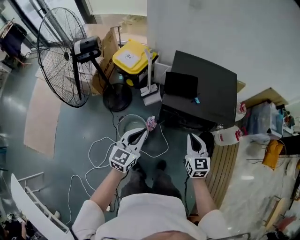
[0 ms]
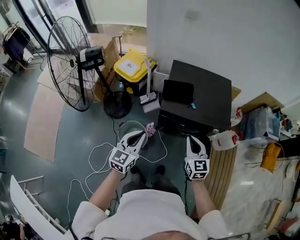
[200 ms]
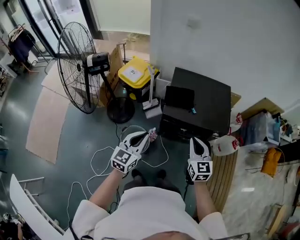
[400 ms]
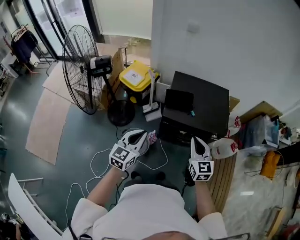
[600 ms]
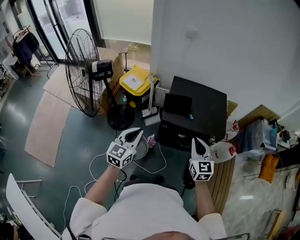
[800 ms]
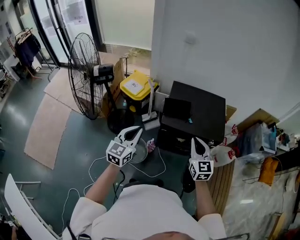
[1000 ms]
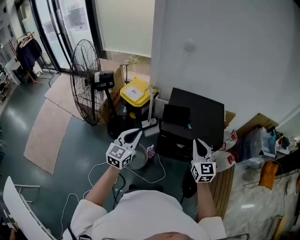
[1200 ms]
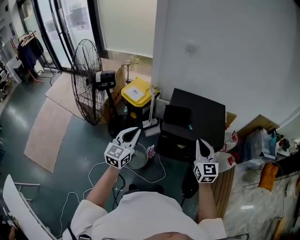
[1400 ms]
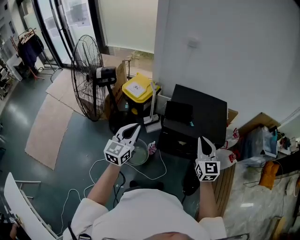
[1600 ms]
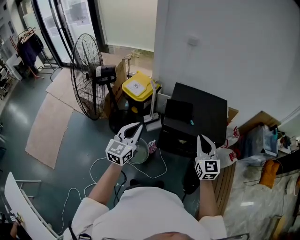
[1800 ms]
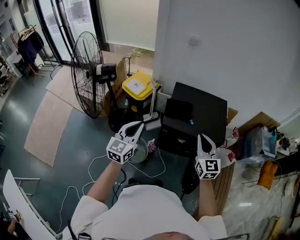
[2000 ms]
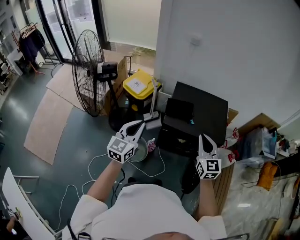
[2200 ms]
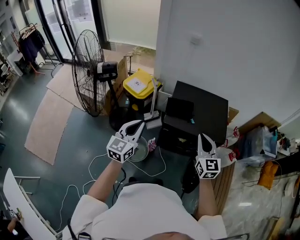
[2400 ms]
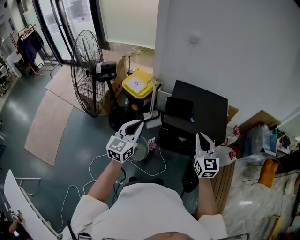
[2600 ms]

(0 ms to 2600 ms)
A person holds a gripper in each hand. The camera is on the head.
0 ms - 1200 ms: Both grippers move upward, roughly 15 cm.
1200 ms - 2600 ms: The grippers stay close to where they were, moving slightly.

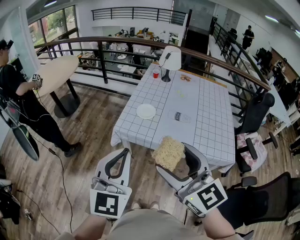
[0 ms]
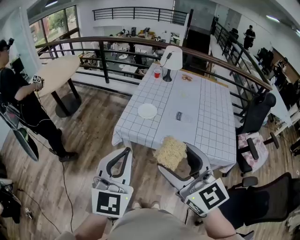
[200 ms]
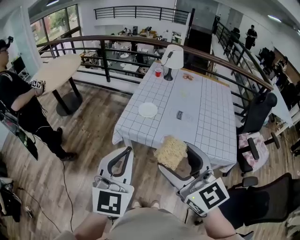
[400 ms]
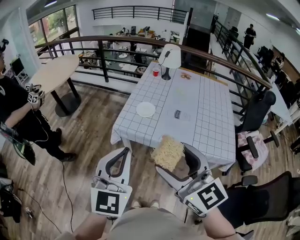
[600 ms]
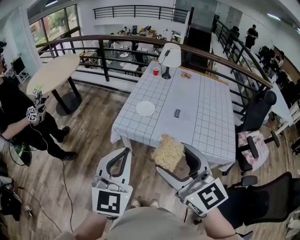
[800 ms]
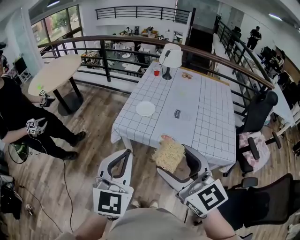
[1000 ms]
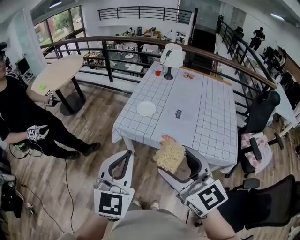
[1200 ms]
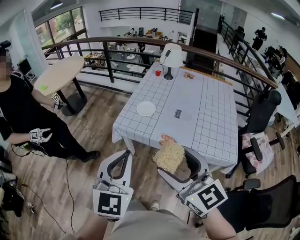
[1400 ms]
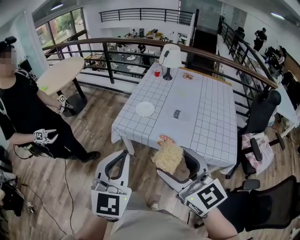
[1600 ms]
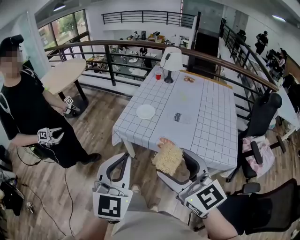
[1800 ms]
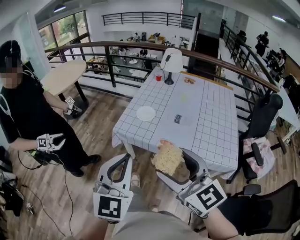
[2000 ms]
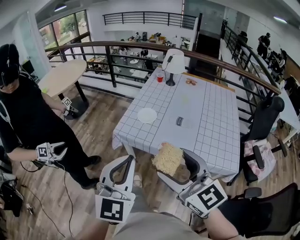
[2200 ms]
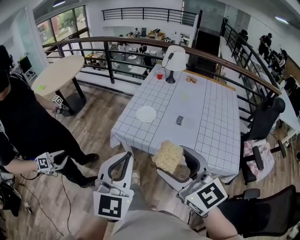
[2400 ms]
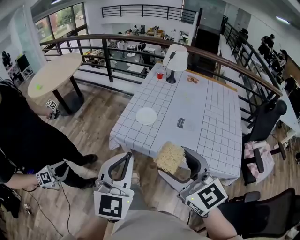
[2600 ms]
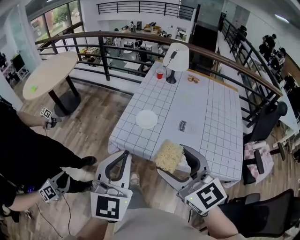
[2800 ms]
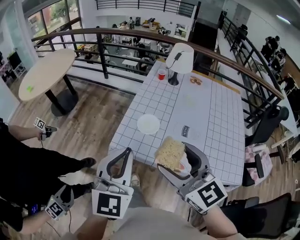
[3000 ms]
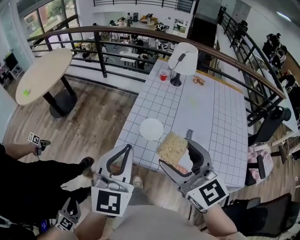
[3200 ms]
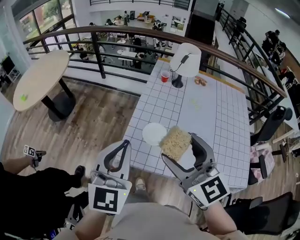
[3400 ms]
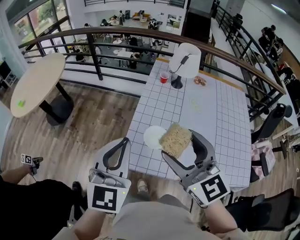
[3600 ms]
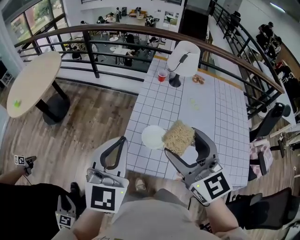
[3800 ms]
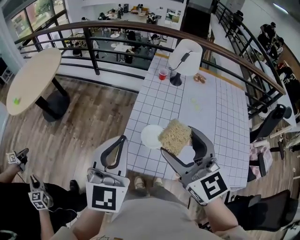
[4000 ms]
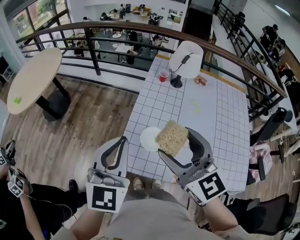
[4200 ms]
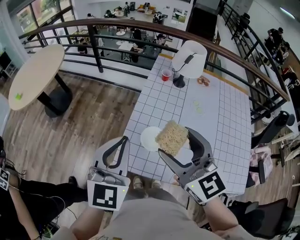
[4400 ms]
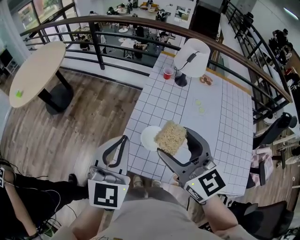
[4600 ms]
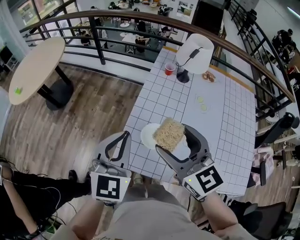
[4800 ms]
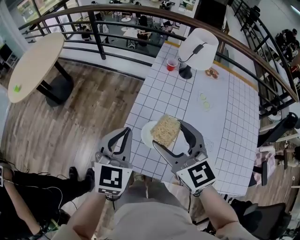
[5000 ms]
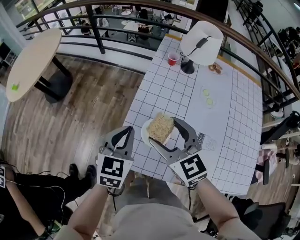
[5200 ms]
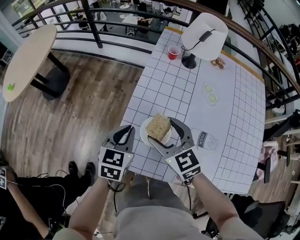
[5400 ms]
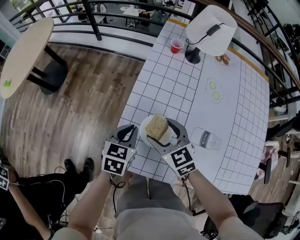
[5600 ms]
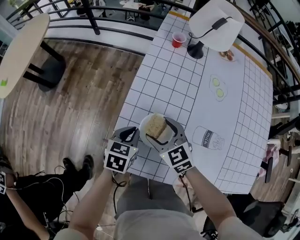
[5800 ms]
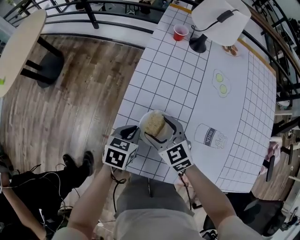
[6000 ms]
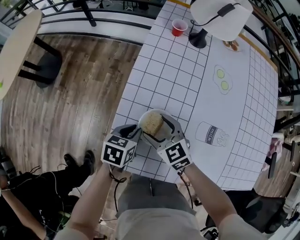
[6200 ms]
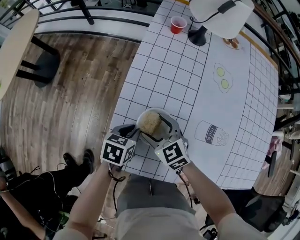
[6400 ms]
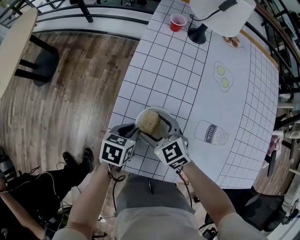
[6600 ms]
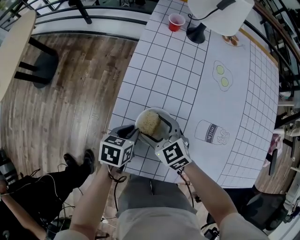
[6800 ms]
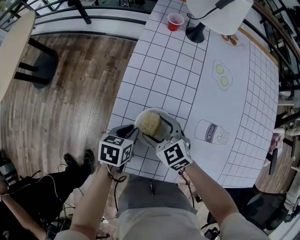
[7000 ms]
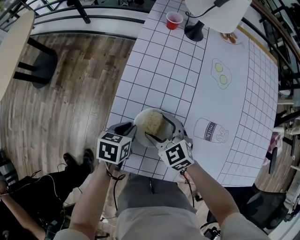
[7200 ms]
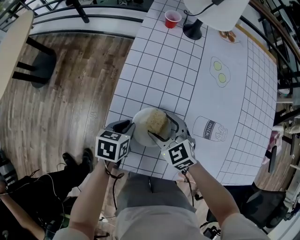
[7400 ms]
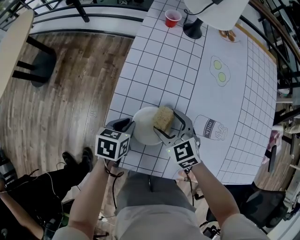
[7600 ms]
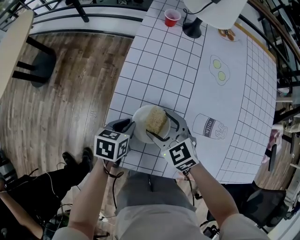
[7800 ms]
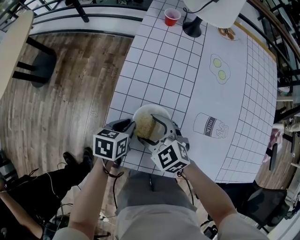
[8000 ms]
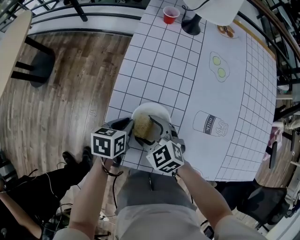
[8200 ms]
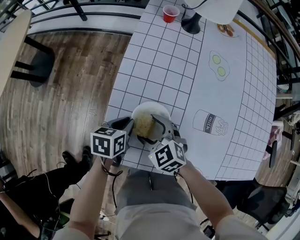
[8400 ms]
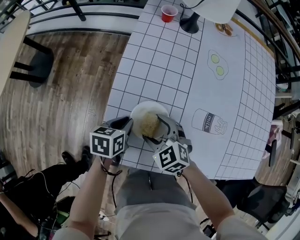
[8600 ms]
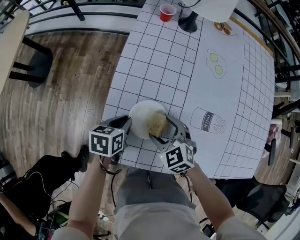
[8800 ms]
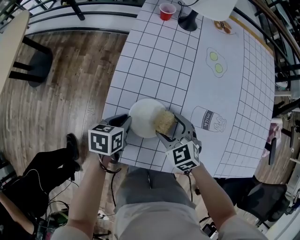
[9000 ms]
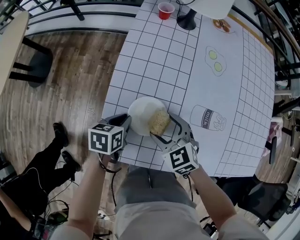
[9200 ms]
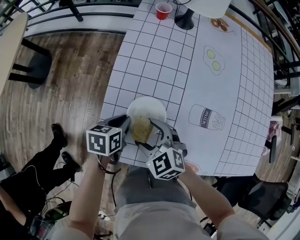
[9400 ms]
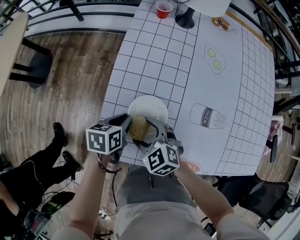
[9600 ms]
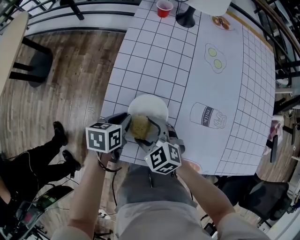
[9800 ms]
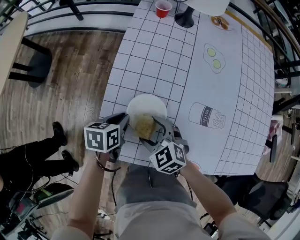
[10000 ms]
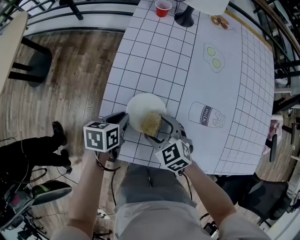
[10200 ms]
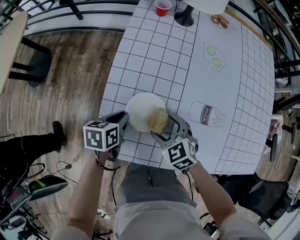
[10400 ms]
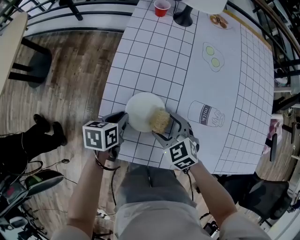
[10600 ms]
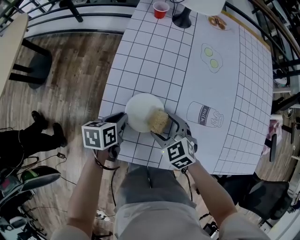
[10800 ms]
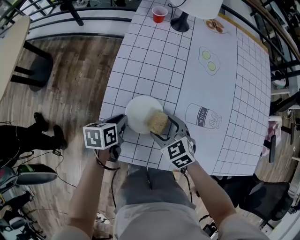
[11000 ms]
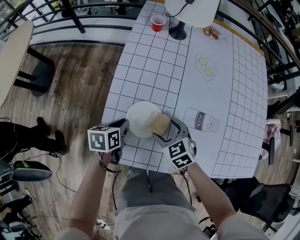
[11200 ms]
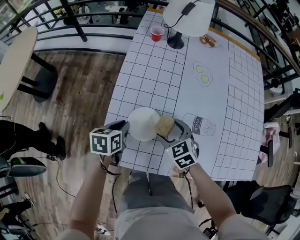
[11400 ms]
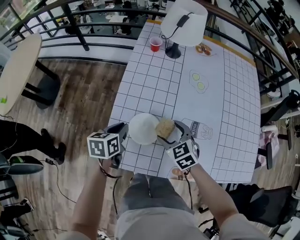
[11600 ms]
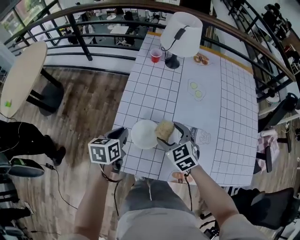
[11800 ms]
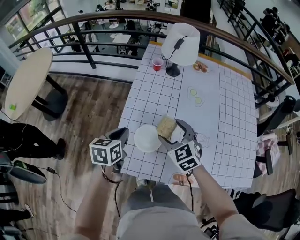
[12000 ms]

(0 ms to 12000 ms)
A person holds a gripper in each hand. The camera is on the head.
0 ms - 1600 ms: The two grippers go about 5 cm to the right.
1600 ms - 3000 ms: Both grippers move forward, approximately 25 cm.
3000 ms - 4400 ms: Both grippers move forward, approximately 20 cm.
4400 ms - 6000 ms: Both grippers move downward, some 40 cm. The left gripper tilts its fingers about 40 degrees downward. Meanwhile the right gripper swivels roughly 30 degrees.
6000 ms - 7600 ms: The right gripper travels to the right by some 5 cm.
7600 ms - 9000 ms: The right gripper reaches about 10 cm to the left, then returns.
9000 ms - 10400 ms: The right gripper reaches roughly 10 cm to the left, then returns.
10400 ms - 12000 ms: Both grippers move upward, about 20 cm. The left gripper changes its angle by about 20 degrees.

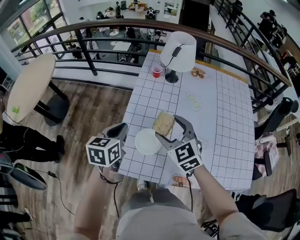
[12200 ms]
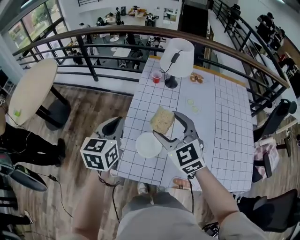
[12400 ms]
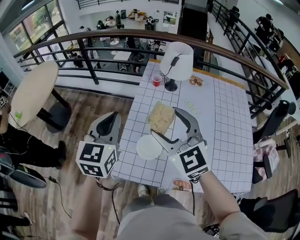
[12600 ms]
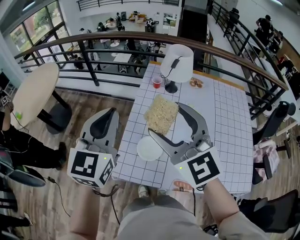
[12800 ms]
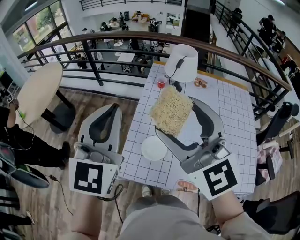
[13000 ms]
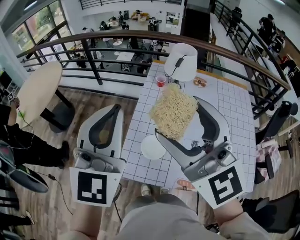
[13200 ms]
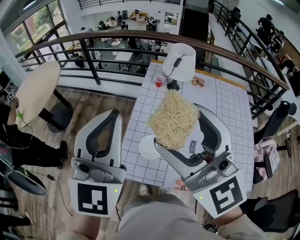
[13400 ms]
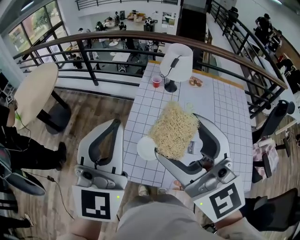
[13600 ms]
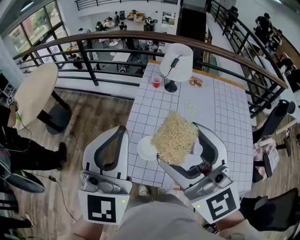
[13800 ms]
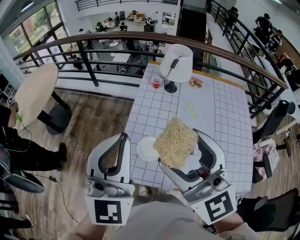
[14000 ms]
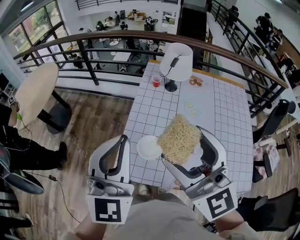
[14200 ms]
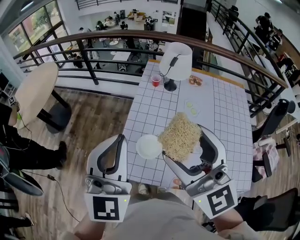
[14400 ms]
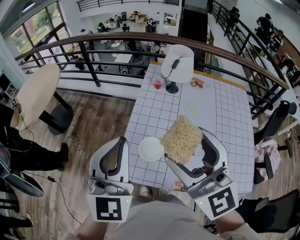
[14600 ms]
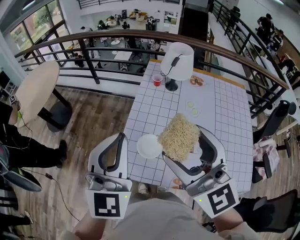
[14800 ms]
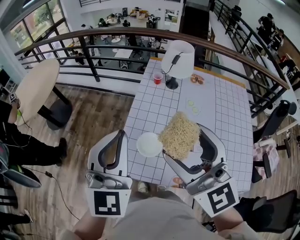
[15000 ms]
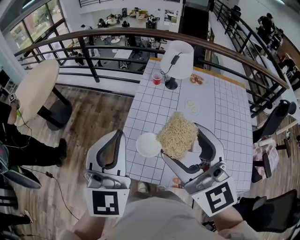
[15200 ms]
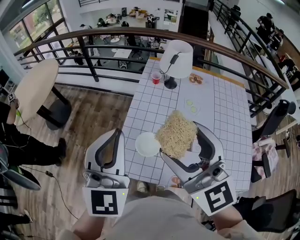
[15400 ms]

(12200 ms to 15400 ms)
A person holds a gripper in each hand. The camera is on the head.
12200 ms - 13800 ms: The right gripper moves upward and backward, roughly 30 cm, and tilts its fingers roughly 30 degrees upward. Meanwhile the left gripper is displaced upward by some 30 cm, and tilts its fingers approximately 40 degrees upward.
13800 ms - 15400 ms: The grippers move only a little.

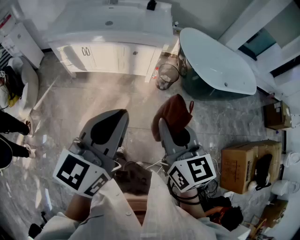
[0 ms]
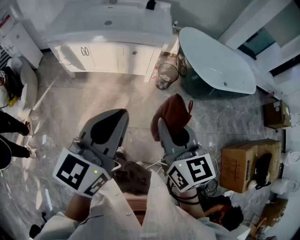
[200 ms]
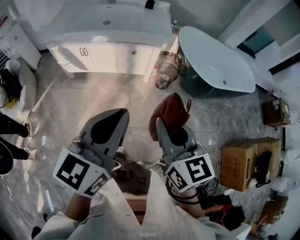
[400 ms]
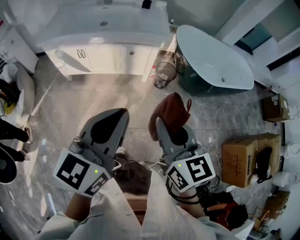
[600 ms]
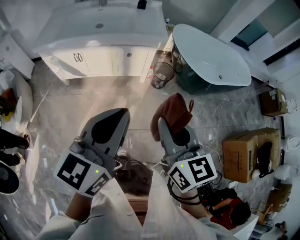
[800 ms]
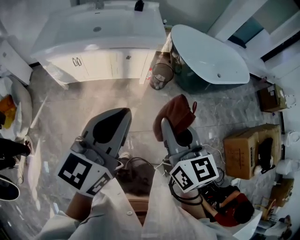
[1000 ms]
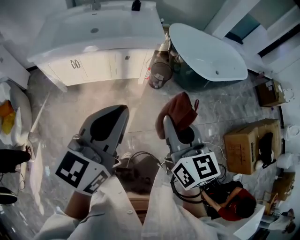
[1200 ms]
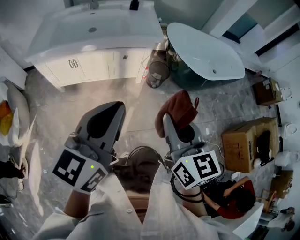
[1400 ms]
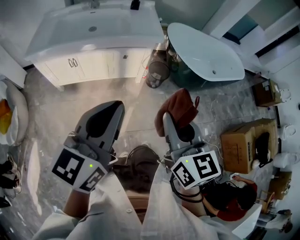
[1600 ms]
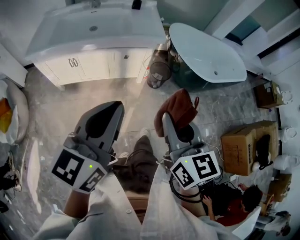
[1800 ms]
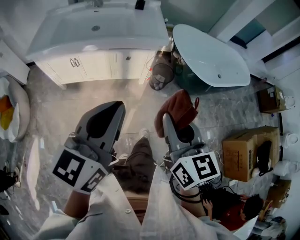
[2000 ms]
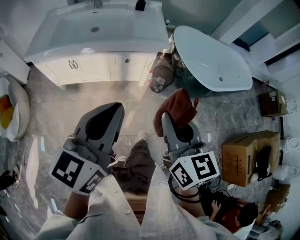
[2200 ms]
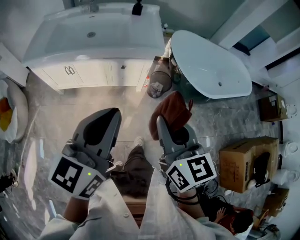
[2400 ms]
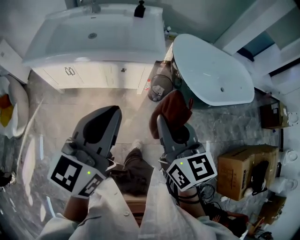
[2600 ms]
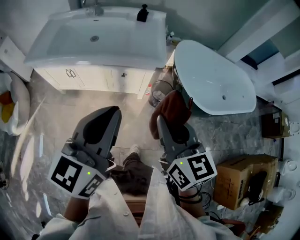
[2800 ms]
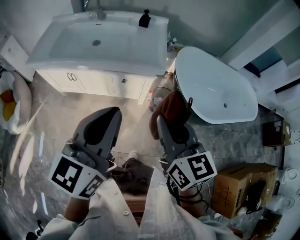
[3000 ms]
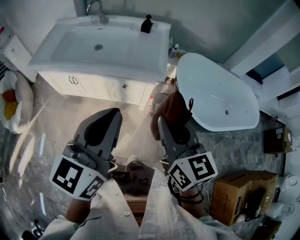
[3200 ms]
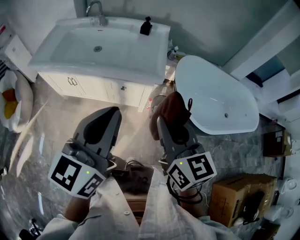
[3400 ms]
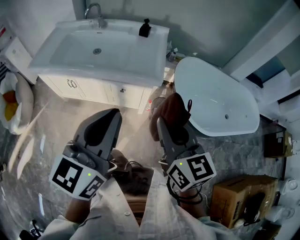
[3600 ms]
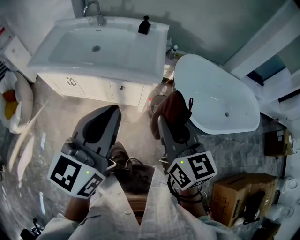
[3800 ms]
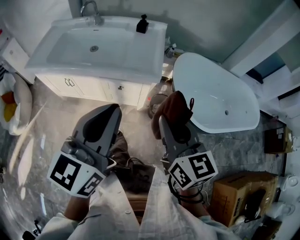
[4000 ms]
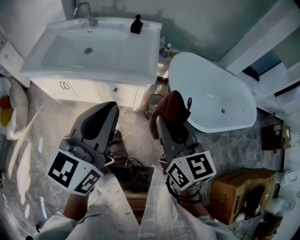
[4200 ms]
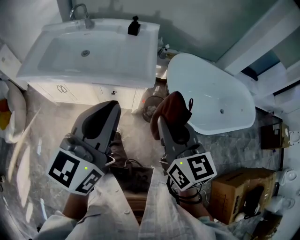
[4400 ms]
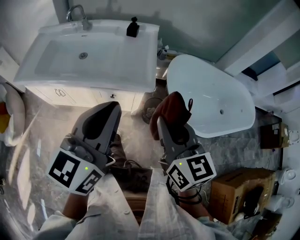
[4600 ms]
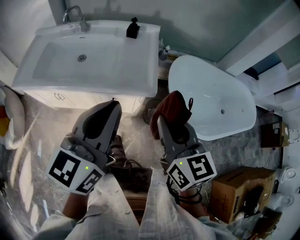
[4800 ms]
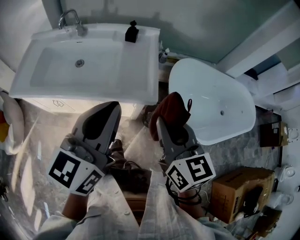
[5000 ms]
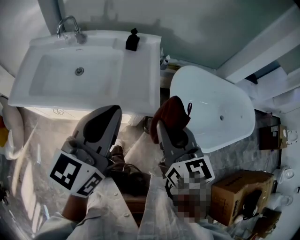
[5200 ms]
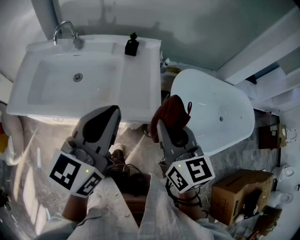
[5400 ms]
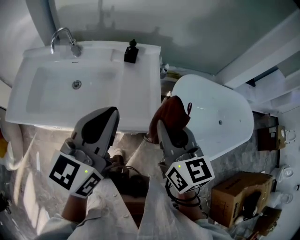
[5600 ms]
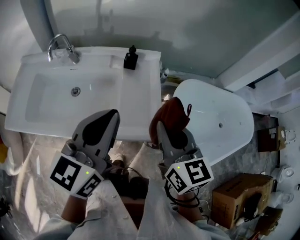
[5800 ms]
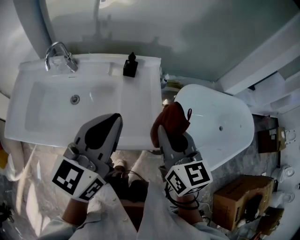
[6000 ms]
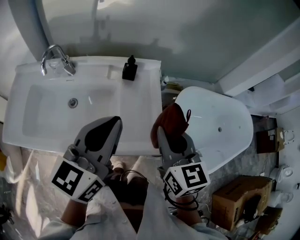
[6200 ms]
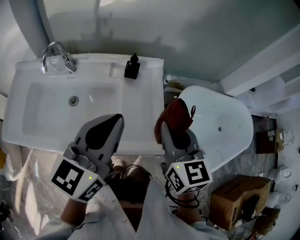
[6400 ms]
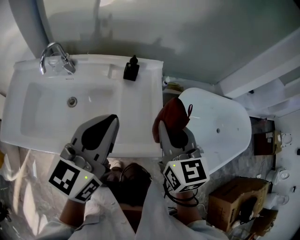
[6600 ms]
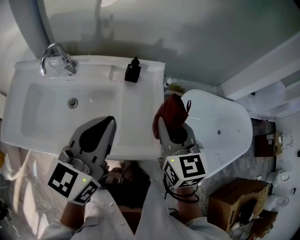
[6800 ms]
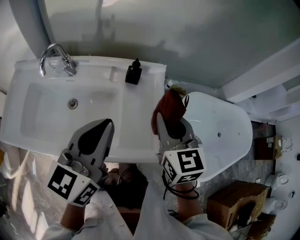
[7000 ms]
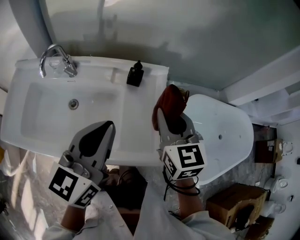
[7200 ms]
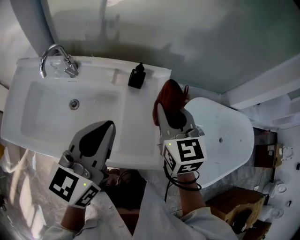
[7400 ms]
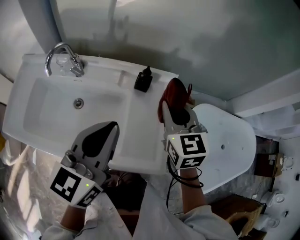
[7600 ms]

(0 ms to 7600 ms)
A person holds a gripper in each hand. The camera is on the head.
0 ms - 1600 ms: The left gripper shifts about 10 cm to the left and forward; the right gripper shifts about 5 cm to the left.
1600 ms - 3000 ms: The left gripper is displaced forward and to the right by approximately 25 cm. Meanwhile the right gripper goes approximately 25 cm forward.
3000 ms - 4600 ms: Both grippers move forward, about 10 cm.
4600 ms - 6000 ms: The grippers both shift forward by about 30 cm.
6000 ms - 7600 ms: The left gripper heads forward, covering some 10 cm. Meanwhile the right gripper moves forward, some 20 cm.
